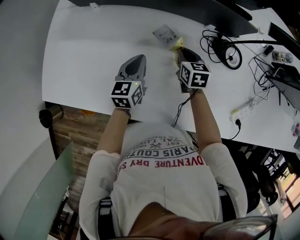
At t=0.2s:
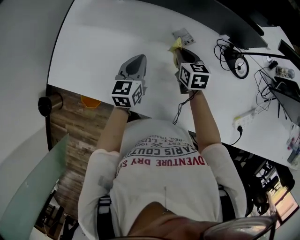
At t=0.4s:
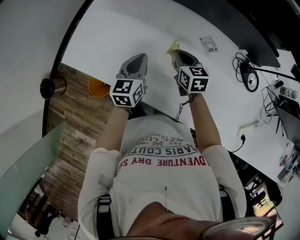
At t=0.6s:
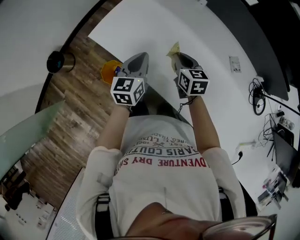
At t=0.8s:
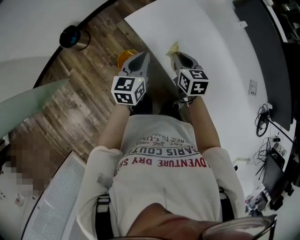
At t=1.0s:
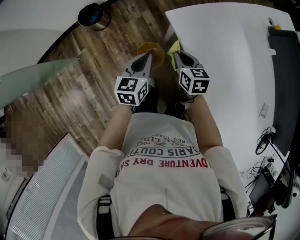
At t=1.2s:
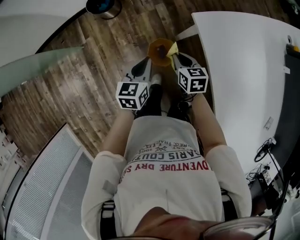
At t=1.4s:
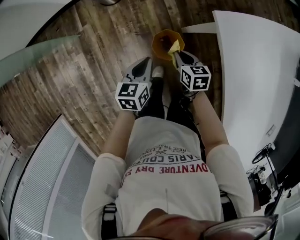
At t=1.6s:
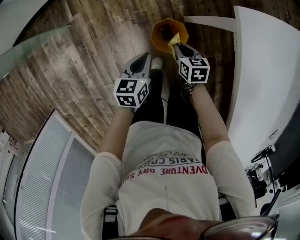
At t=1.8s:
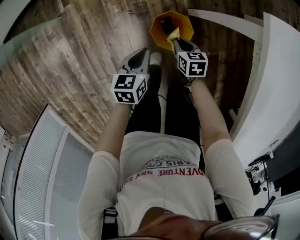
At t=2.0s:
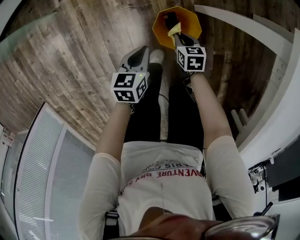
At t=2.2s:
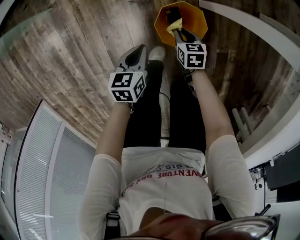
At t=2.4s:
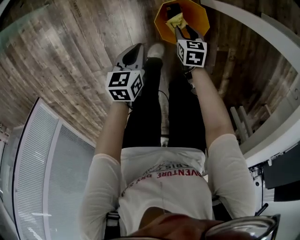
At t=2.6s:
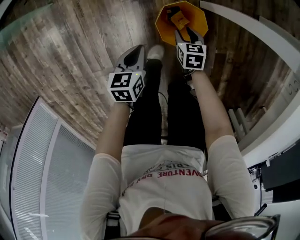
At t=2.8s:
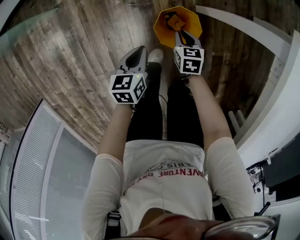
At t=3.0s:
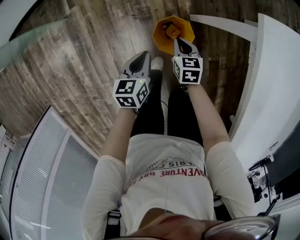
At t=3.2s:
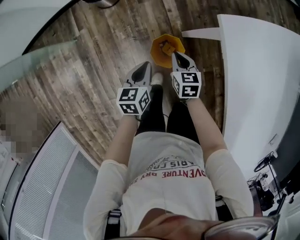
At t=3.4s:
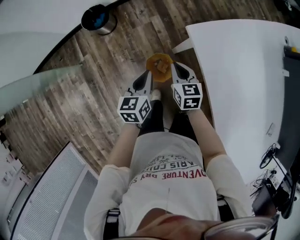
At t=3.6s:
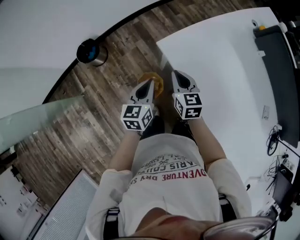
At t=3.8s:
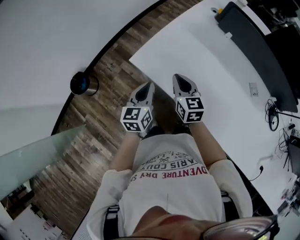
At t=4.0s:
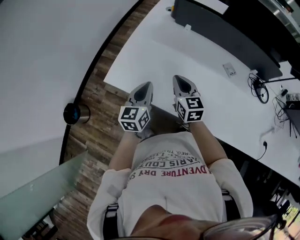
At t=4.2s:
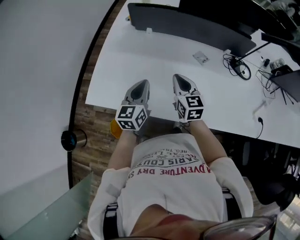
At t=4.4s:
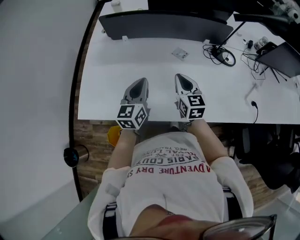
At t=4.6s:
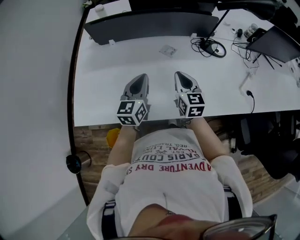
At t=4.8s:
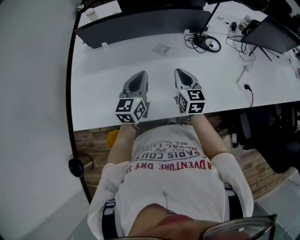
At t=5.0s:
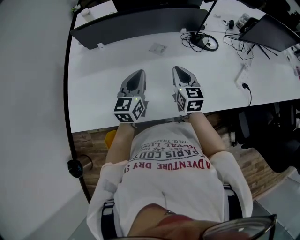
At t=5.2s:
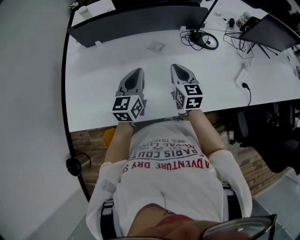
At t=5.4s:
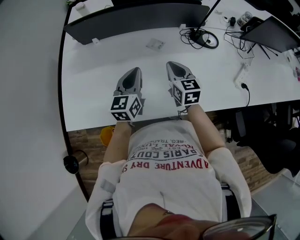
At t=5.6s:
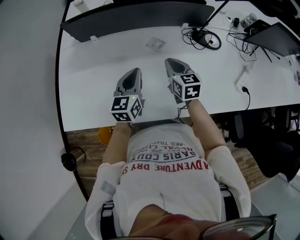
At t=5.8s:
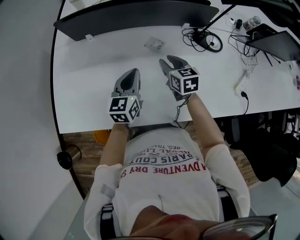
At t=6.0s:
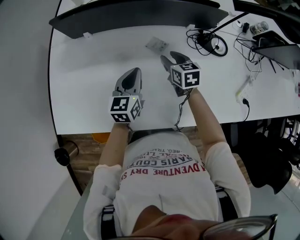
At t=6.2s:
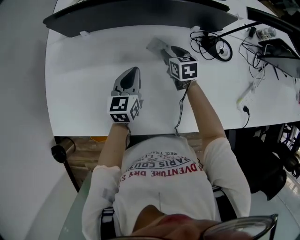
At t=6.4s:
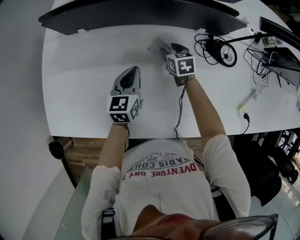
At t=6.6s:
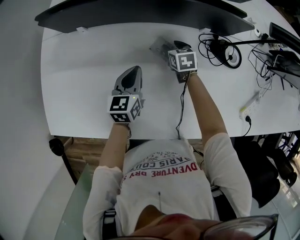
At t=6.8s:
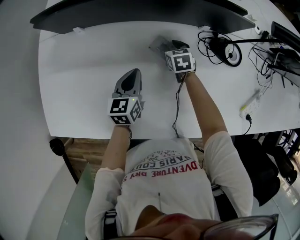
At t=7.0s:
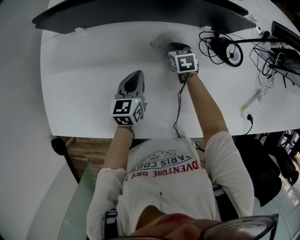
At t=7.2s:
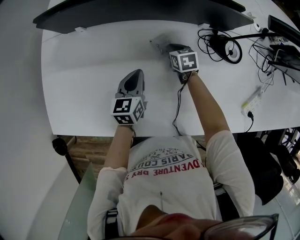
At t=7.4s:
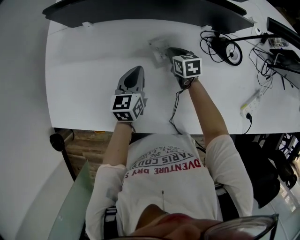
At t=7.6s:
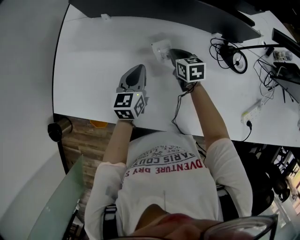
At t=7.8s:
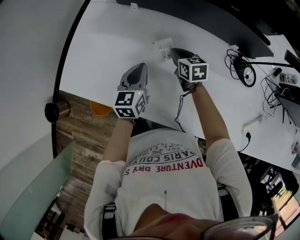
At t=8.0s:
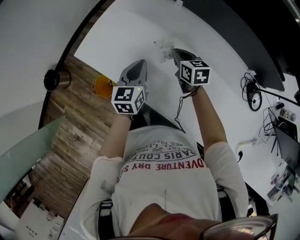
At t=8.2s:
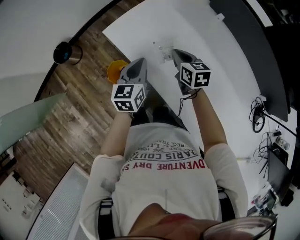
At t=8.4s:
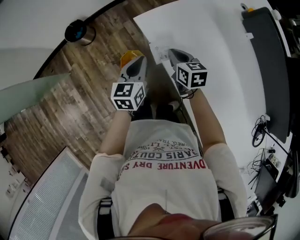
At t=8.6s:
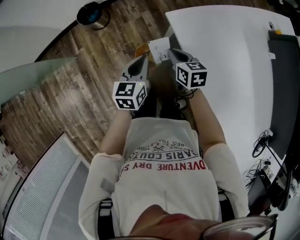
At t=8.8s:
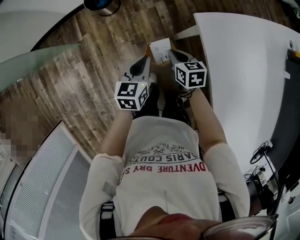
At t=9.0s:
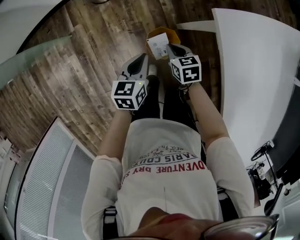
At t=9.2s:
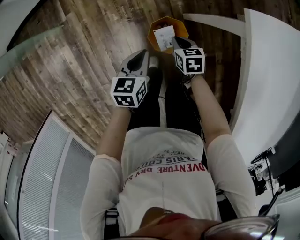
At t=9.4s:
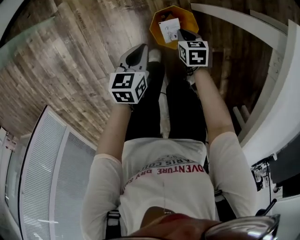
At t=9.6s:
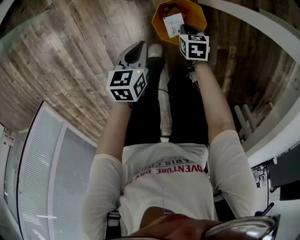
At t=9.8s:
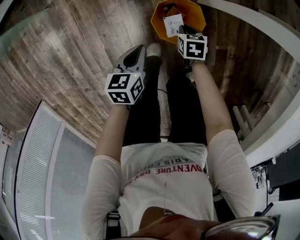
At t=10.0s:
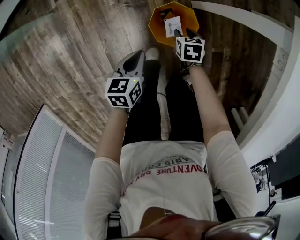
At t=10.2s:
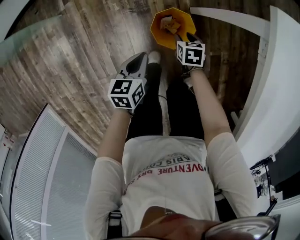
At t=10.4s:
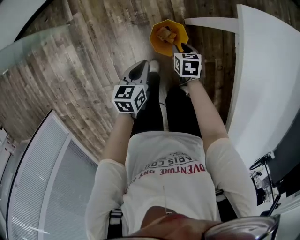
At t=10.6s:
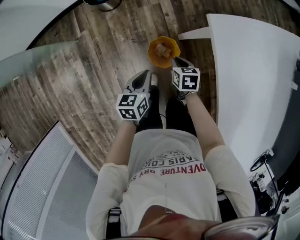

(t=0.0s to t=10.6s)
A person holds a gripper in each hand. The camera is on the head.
t=0.0s - t=1.6s: Both grippers are carried some 80 cm. The left gripper turns by some 60 degrees. The right gripper turns by roughly 70 degrees.
t=1.6s - t=3.0s: The right gripper goes downward and returns, some 25 cm each way, and opens, then closes again. Meanwhile the left gripper travels downward and back again, roughly 20 cm each way.
t=3.0s - t=4.6s: Both grippers are carried some 70 cm. The right gripper points its fingers some 40 degrees further upward. Meanwhile the left gripper points its fingers approximately 40 degrees further upward.
t=4.6s - t=6.0s: Both grippers move forward and downward, about 20 cm. The right gripper rotates approximately 30 degrees, and opens its fingers.
t=6.0s - t=7.6s: The right gripper is displaced downward and to the left by roughly 10 cm, and closes its fingers.
t=7.6s - t=9.0s: The two grippers travel together, some 80 cm. The right gripper rotates roughly 70 degrees. The left gripper swivels approximately 60 degrees.
t=9.0s - t=10.6s: The right gripper moves about 30 cm downward and comes back, and opens, then closes again, while the left gripper travels downward and back again, some 25 cm each way.

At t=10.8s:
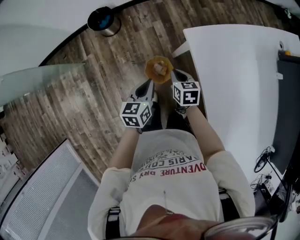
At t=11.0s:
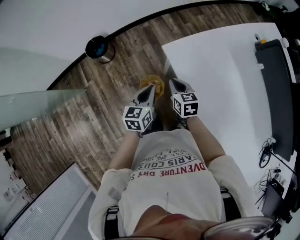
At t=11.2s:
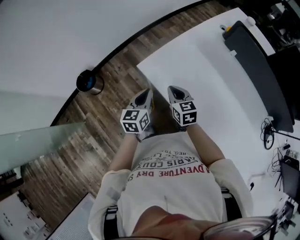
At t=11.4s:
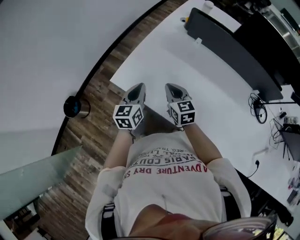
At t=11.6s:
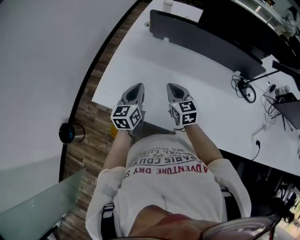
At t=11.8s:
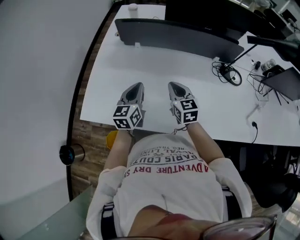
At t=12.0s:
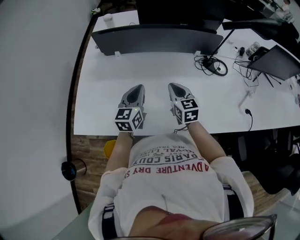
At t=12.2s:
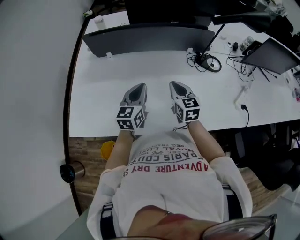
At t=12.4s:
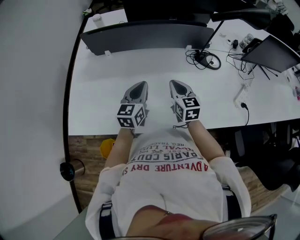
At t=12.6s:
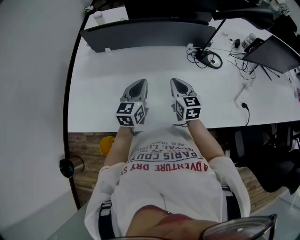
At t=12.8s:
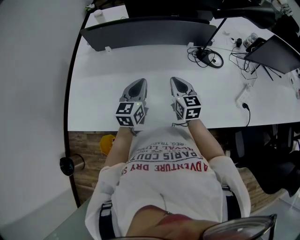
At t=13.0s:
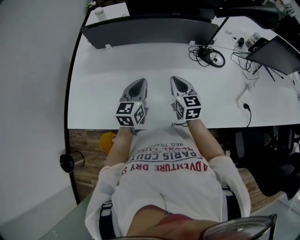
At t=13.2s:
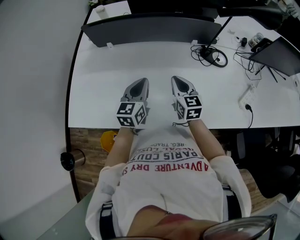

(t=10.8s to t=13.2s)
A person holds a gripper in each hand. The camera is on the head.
t=10.8s - t=12.0s: The pair of grippers is taken approximately 60 cm. The left gripper swivels approximately 80 degrees; the right gripper swivels some 70 degrees.
t=12.0s - t=13.2s: Both grippers travel together to the right, about 10 cm.

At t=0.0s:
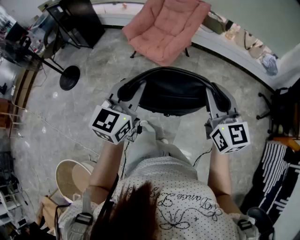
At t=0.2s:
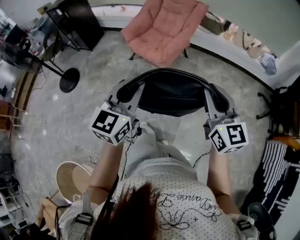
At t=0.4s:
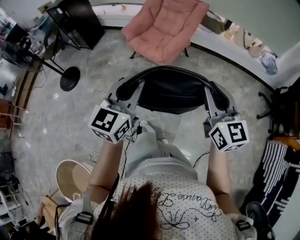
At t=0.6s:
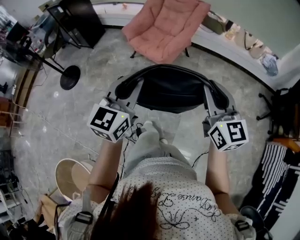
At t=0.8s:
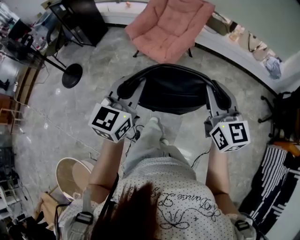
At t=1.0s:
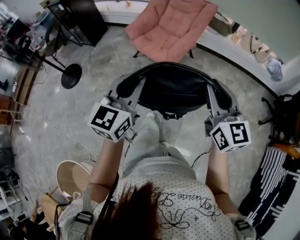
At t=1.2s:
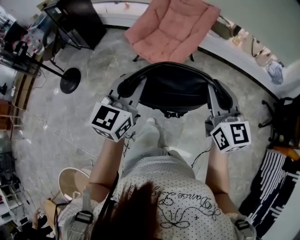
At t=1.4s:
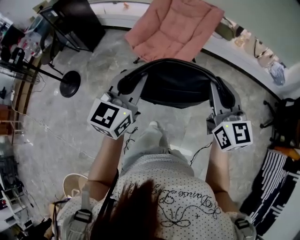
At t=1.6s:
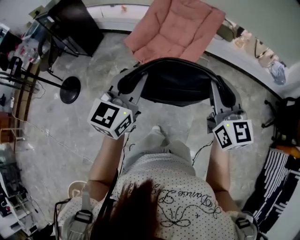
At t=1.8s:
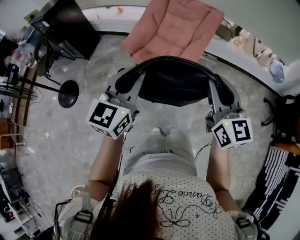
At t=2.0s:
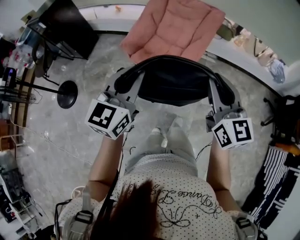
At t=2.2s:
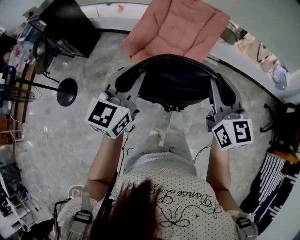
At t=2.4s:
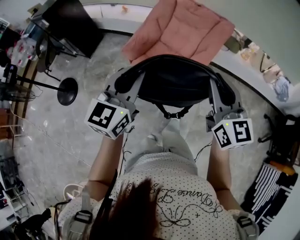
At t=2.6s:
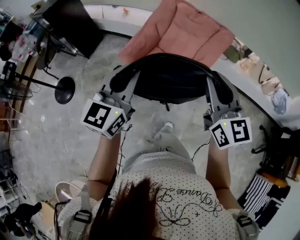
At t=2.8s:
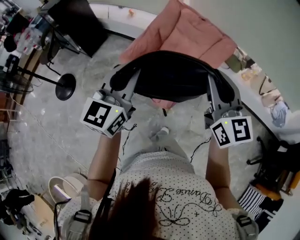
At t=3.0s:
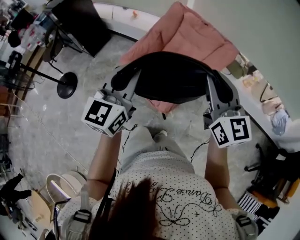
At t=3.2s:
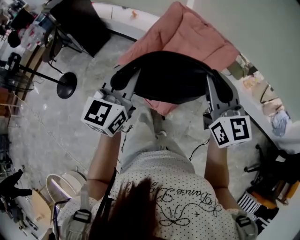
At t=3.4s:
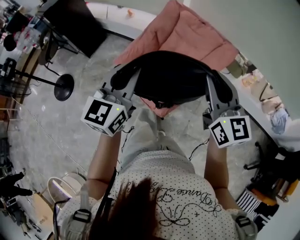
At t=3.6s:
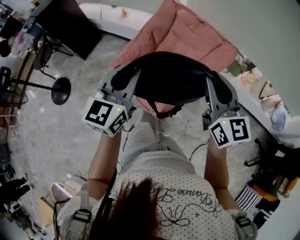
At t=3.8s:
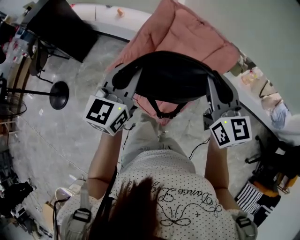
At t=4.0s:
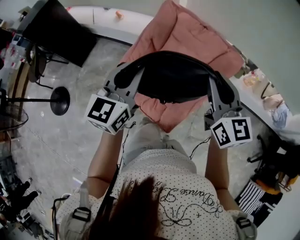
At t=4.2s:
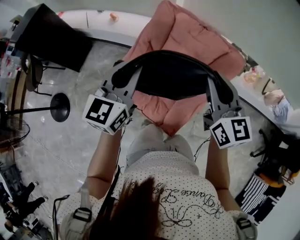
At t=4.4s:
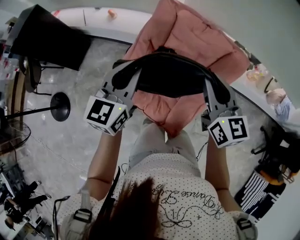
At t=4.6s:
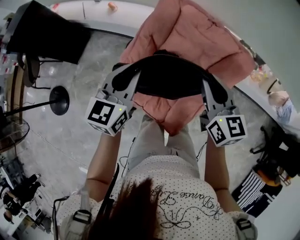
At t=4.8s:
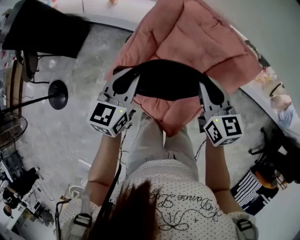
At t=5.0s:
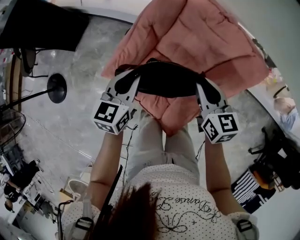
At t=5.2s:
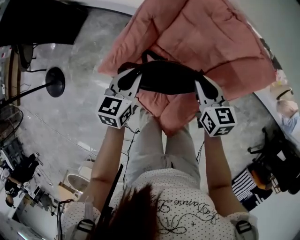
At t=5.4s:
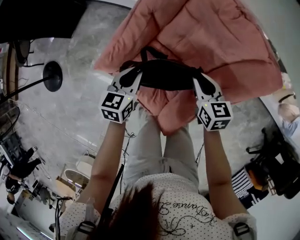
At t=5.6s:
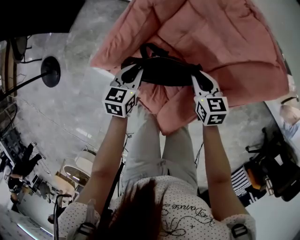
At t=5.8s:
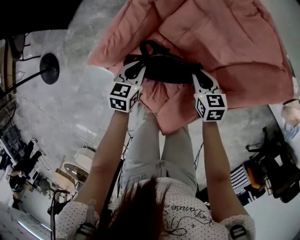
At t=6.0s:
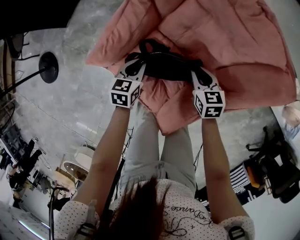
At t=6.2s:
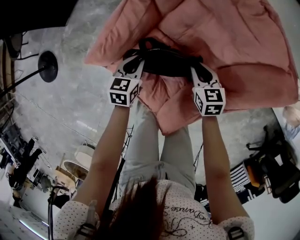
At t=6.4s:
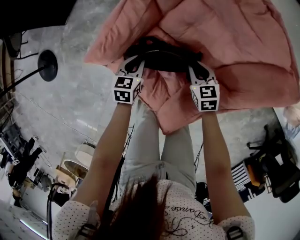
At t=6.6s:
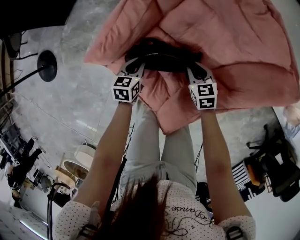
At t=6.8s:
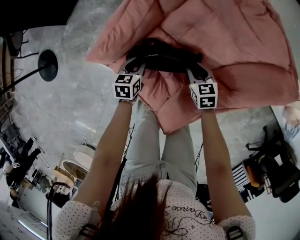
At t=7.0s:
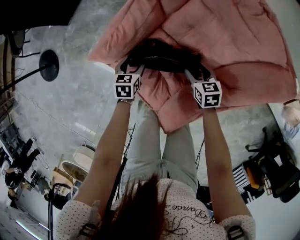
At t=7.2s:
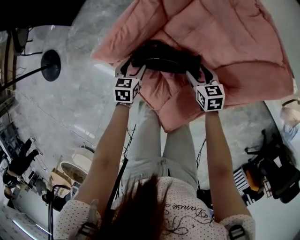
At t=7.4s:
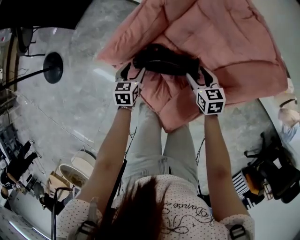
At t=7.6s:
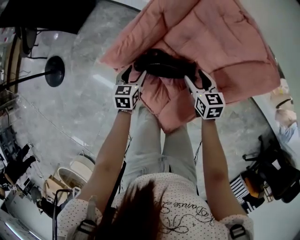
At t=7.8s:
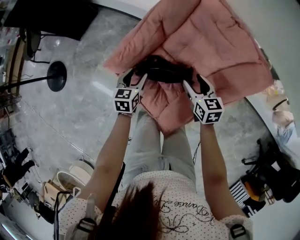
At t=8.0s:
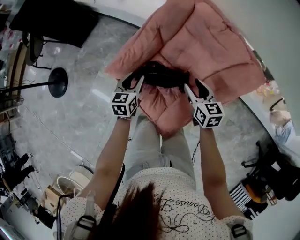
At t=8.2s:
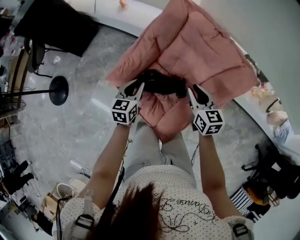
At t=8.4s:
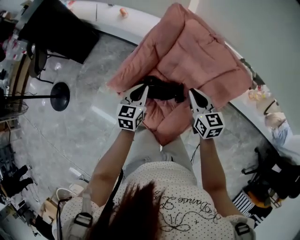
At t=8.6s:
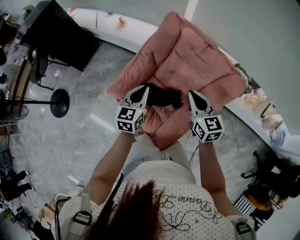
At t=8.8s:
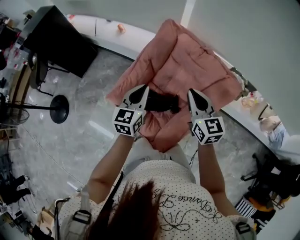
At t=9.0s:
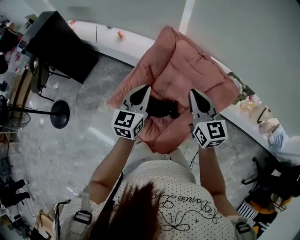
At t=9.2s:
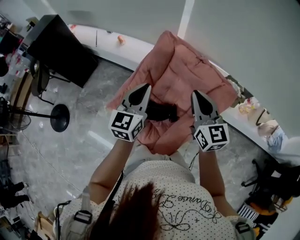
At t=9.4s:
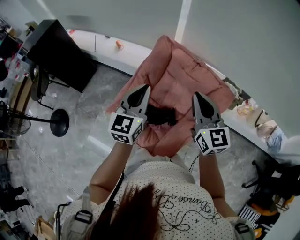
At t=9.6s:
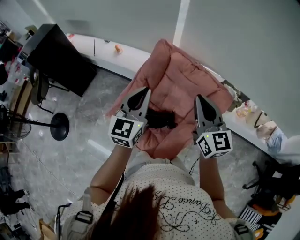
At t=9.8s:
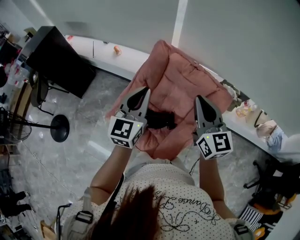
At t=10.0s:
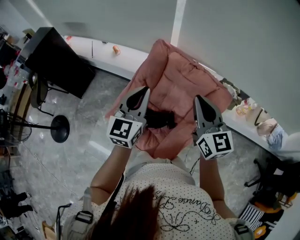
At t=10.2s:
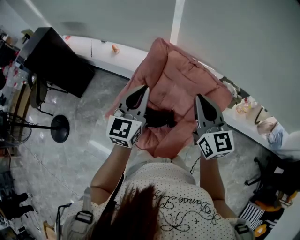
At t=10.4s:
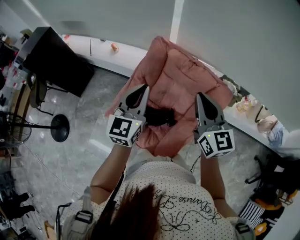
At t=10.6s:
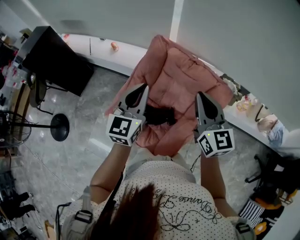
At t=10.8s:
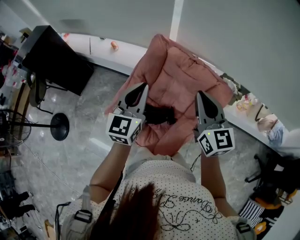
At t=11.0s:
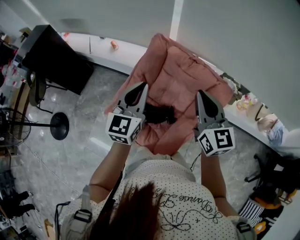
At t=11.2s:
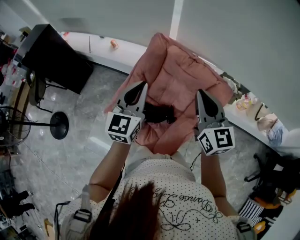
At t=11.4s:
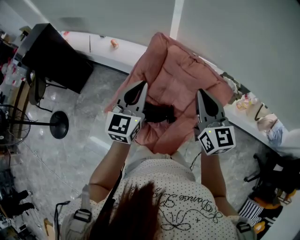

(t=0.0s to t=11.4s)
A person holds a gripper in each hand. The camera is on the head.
t=0.0s - t=1.4s: The grippers both shift forward by approximately 20 cm.
t=1.4s - t=2.8s: The grippers both shift forward by approximately 30 cm.
t=2.8s - t=4.2s: The two grippers go approximately 25 cm forward.
t=4.2s - t=5.6s: Both grippers move downward, about 40 cm. The left gripper tilts its fingers approximately 30 degrees downward; the right gripper tips its fingers downward by approximately 30 degrees.
t=5.6s - t=7.2s: The right gripper travels downward by approximately 10 cm, and opens up. Meanwhile the left gripper travels downward and to the left by roughly 10 cm, and opens its fingers.
t=7.2s - t=8.6s: The grippers both shift upward by approximately 30 cm. The left gripper swivels about 30 degrees, and closes up, while the right gripper changes its angle by approximately 30 degrees, and closes up.
t=8.6s - t=10.0s: Both grippers move upward, approximately 20 cm. The right gripper rotates roughly 20 degrees; the left gripper turns by approximately 20 degrees.
t=10.0s - t=11.4s: Neither gripper changes place.
